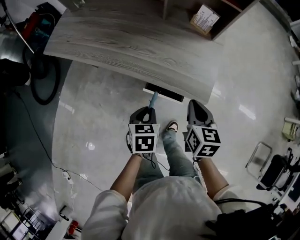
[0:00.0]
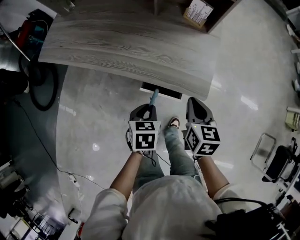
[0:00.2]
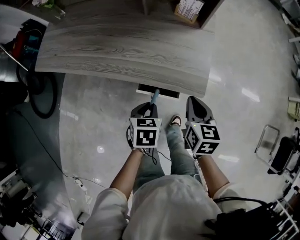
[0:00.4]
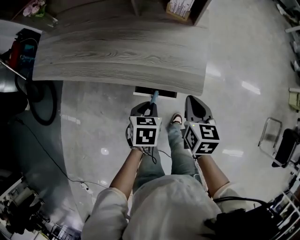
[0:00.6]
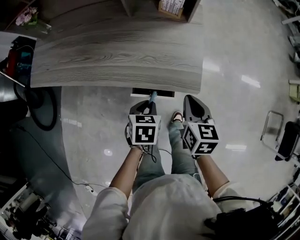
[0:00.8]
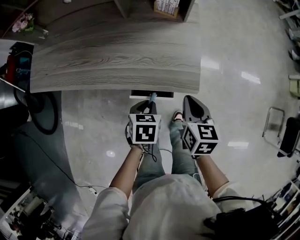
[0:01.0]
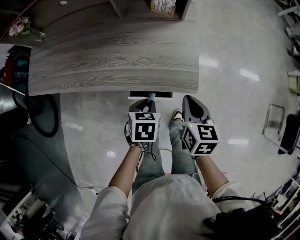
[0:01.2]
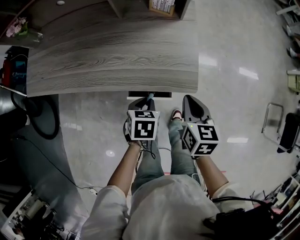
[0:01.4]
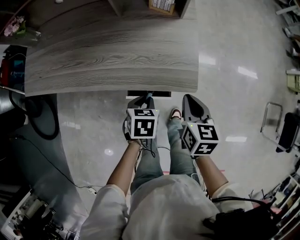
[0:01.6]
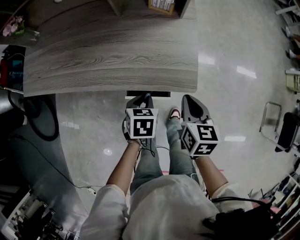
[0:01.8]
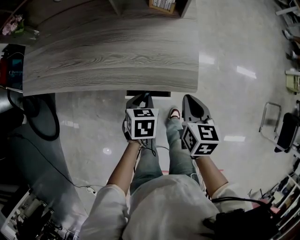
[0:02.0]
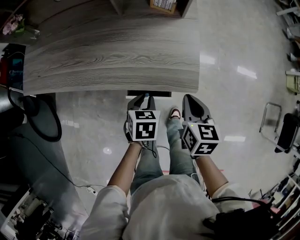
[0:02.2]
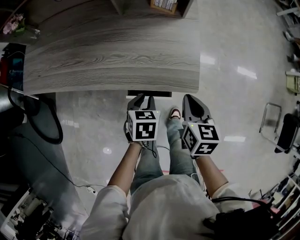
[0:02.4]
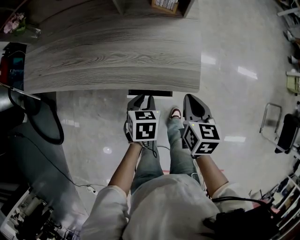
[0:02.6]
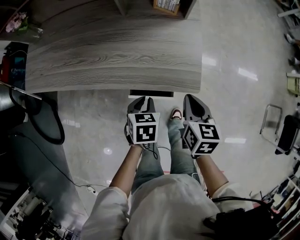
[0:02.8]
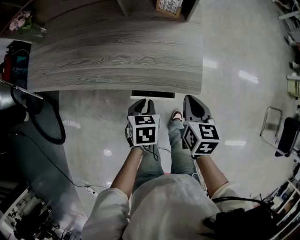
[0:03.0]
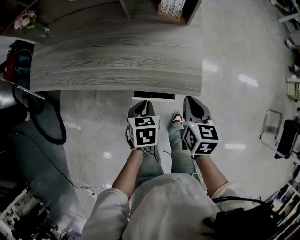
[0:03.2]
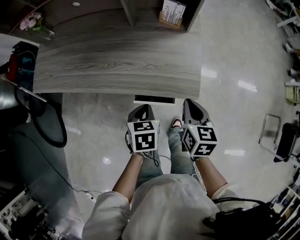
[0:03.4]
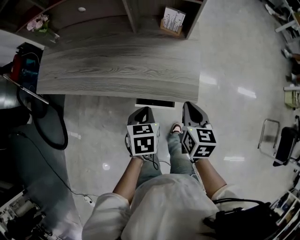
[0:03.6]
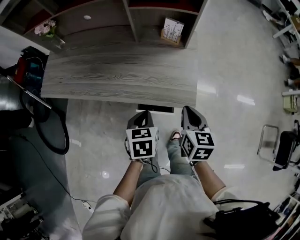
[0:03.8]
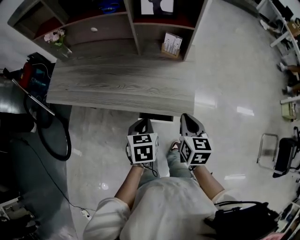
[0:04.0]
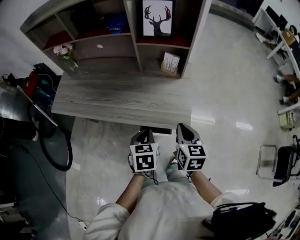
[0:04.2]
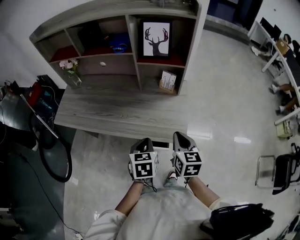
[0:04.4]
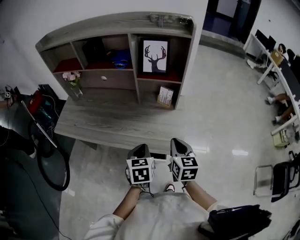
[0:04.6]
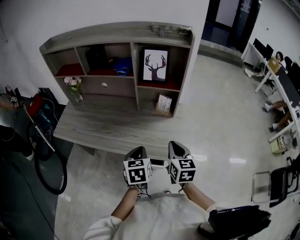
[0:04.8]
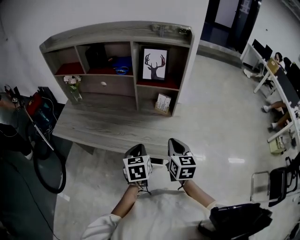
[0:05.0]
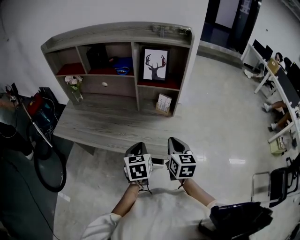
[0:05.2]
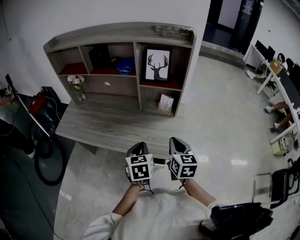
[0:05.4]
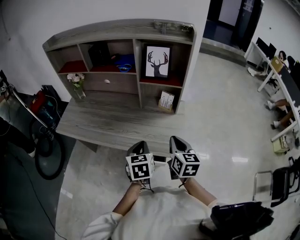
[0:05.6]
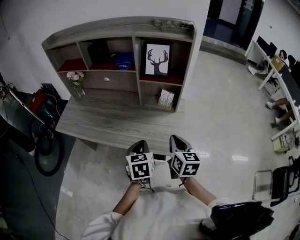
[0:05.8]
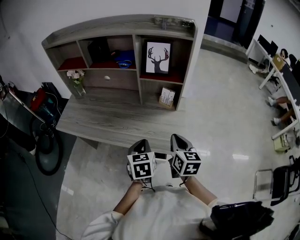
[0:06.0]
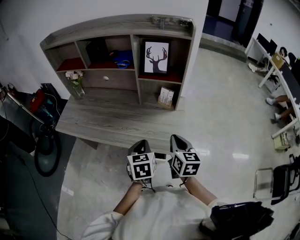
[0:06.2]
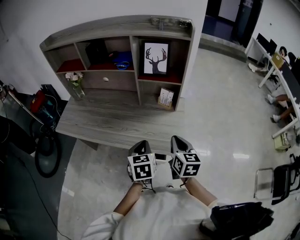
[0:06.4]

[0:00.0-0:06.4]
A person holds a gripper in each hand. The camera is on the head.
0.0 to 1.6 s: The left gripper travels forward by some 5 cm, and swivels roughly 20 degrees; the right gripper shifts by some 5 cm.
1.6 to 3.2 s: The grippers stay close to where they were, moving slightly.
3.2 to 4.8 s: Both grippers move upward, about 20 cm. The left gripper swivels approximately 30 degrees; the right gripper rotates approximately 20 degrees.
4.8 to 6.4 s: The grippers stay close to where they were, moving slightly.

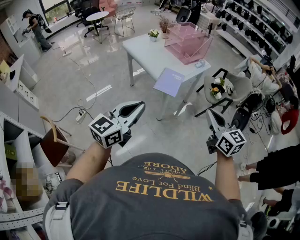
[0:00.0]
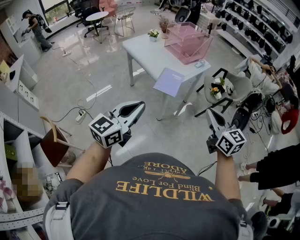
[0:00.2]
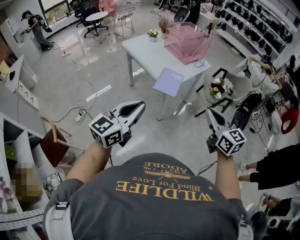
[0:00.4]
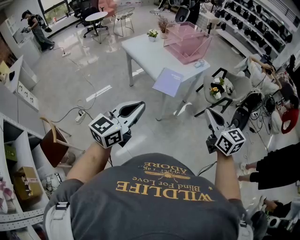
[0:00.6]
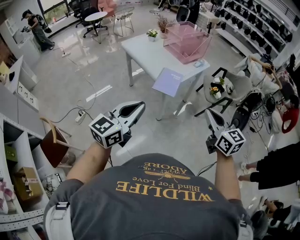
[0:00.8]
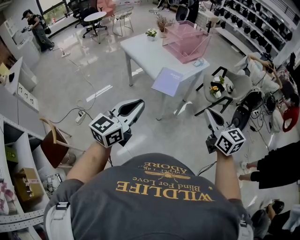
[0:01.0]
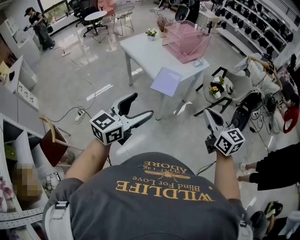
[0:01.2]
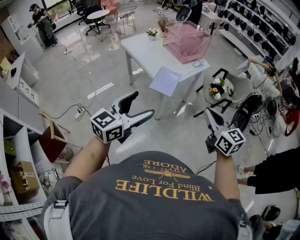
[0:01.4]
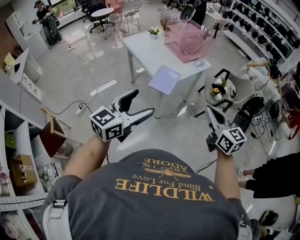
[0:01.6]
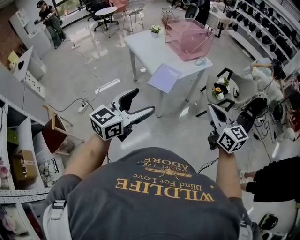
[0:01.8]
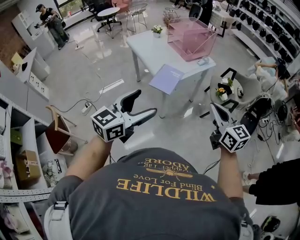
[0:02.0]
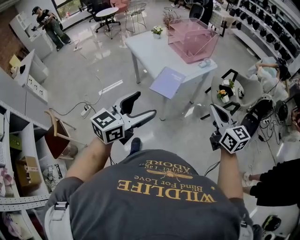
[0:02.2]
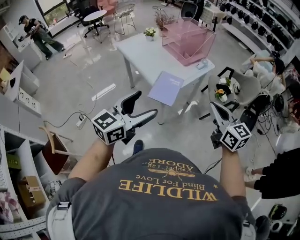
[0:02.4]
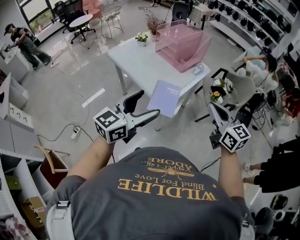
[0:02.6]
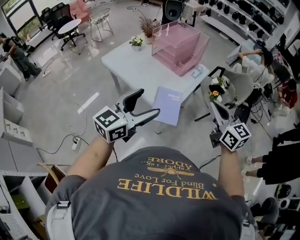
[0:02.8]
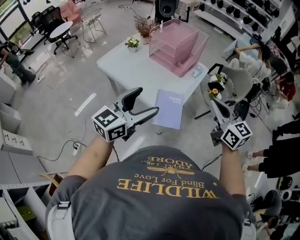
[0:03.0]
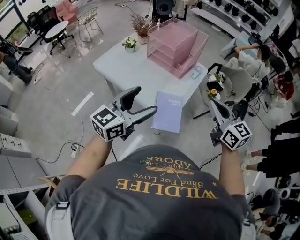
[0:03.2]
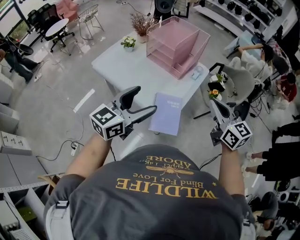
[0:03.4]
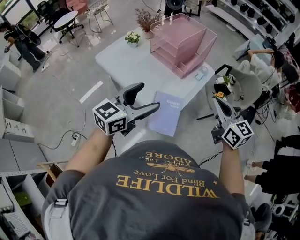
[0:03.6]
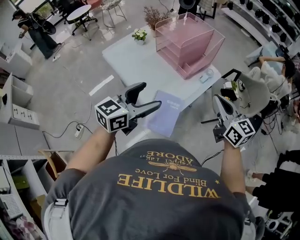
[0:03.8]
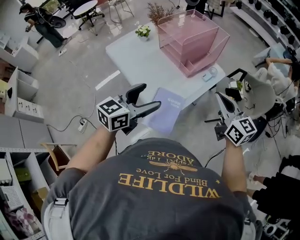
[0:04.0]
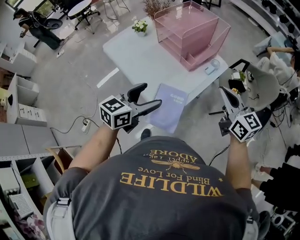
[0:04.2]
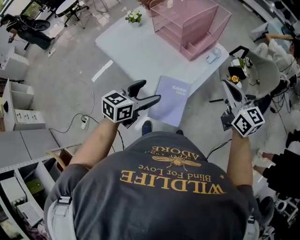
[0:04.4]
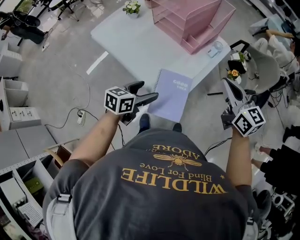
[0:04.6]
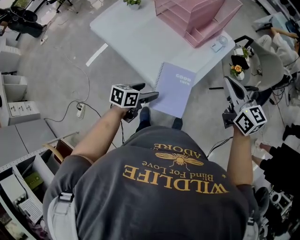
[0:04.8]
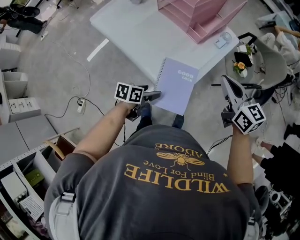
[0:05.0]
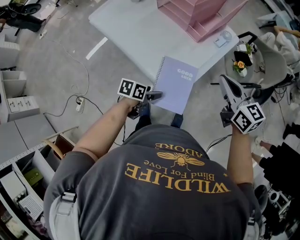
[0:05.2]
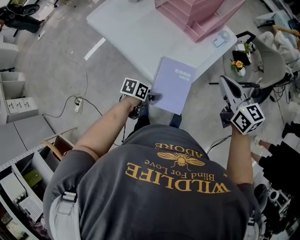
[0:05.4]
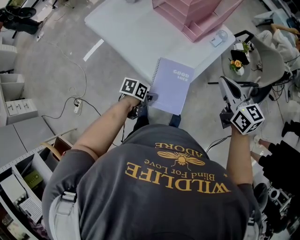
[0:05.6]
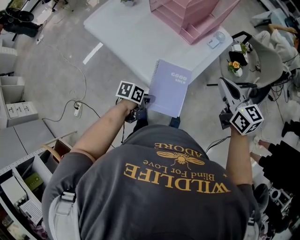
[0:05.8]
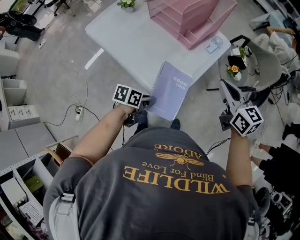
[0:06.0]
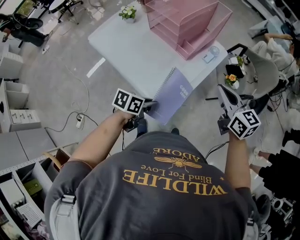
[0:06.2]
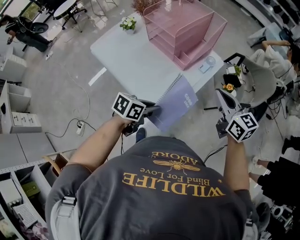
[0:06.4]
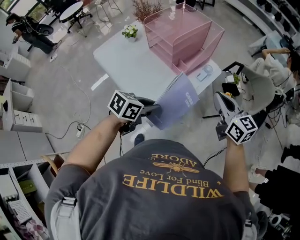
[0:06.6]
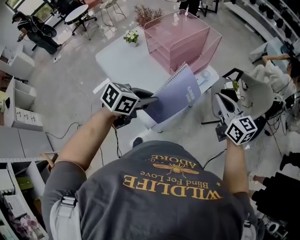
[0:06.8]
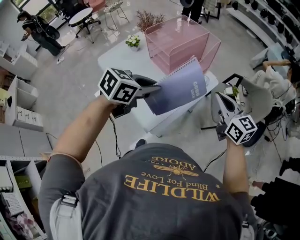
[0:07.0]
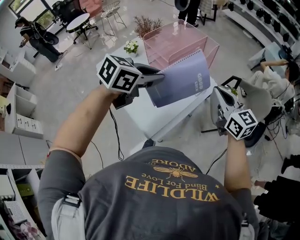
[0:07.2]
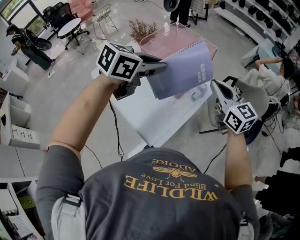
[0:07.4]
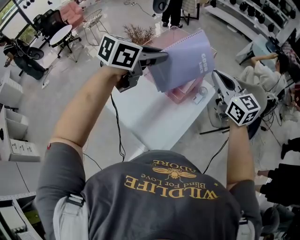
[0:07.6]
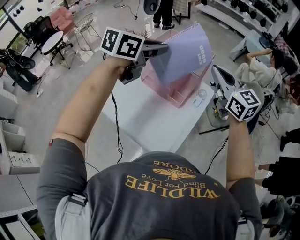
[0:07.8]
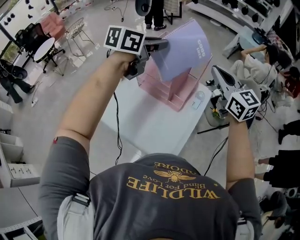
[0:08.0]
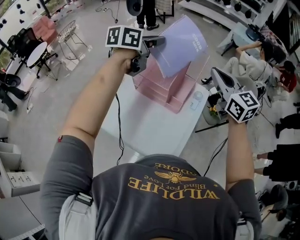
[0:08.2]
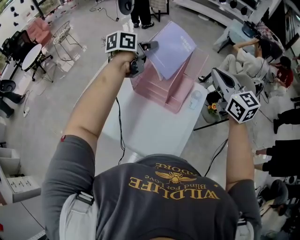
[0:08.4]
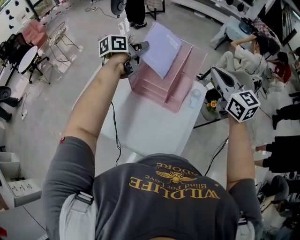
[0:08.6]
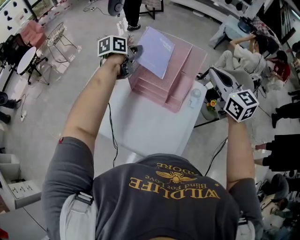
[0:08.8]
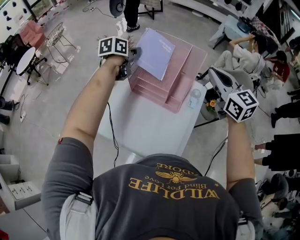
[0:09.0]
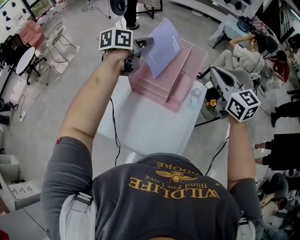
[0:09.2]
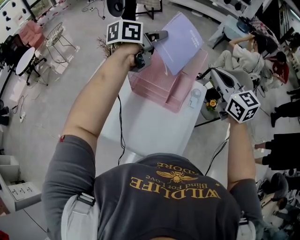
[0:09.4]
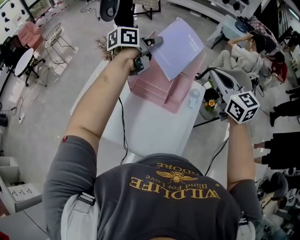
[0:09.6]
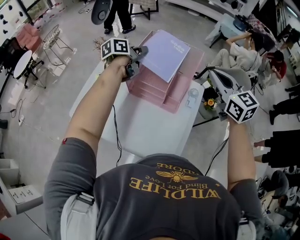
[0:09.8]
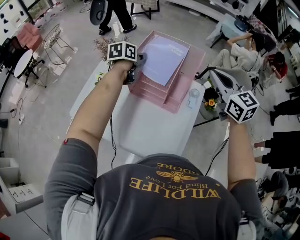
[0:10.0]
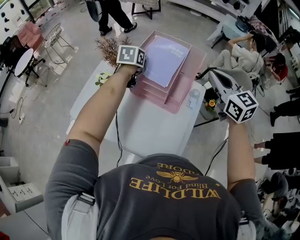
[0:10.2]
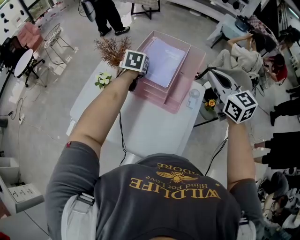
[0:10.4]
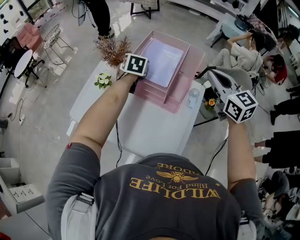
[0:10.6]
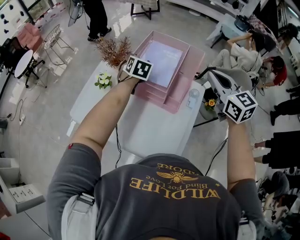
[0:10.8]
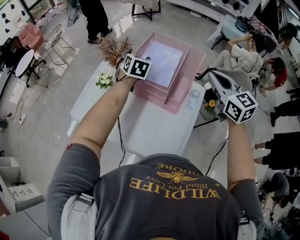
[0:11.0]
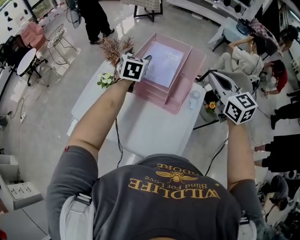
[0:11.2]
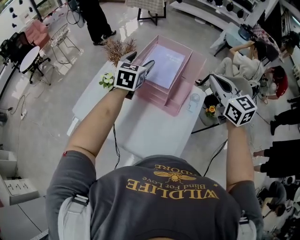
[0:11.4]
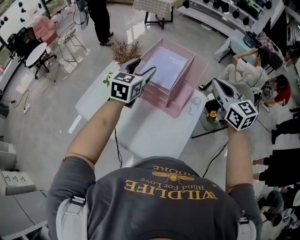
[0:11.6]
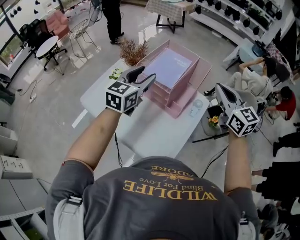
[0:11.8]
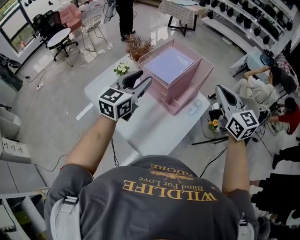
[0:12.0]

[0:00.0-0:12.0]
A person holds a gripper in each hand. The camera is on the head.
0.0 to 1.6 s: Both grippers travel together to the right, about 5 cm. The left gripper opens.
1.6 to 3.0 s: The right gripper travels forward and to the left by roughly 30 cm; the left gripper moves forward, roughly 35 cm.
3.0 to 4.4 s: The left gripper goes some 20 cm downward and forward, and rotates some 30 degrees, while the right gripper is displaced forward and downward by about 20 cm.
4.4 to 6.0 s: The left gripper moves downward, roughly 20 cm, rotates about 40 degrees, and closes its fingers; the right gripper moves downward, roughly 5 cm.
6.0 to 7.6 s: The left gripper is displaced upward and forward by approximately 50 cm, and twists some 50 degrees clockwise, seen from behind. Meanwhile the right gripper heads upward and forward, covering about 25 cm, and changes its angle by roughly 20 degrees.
7.6 to 9.0 s: The right gripper goes roughly 5 cm forward; the left gripper travels forward, to the left and downward by roughly 30 cm, and turns by some 20 degrees.
9.0 to 10.4 s: The left gripper reaches some 15 cm upward, then returns, and turns by roughly 30 degrees.
10.4 to 12.0 s: The left gripper moves backward and upward, approximately 30 cm, angles its fingers upward, by some 40 degrees, and opens, then closes again. The right gripper is displaced backward by about 5 cm.

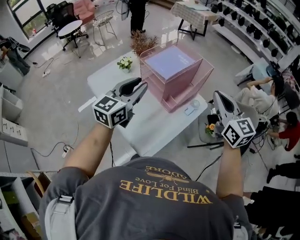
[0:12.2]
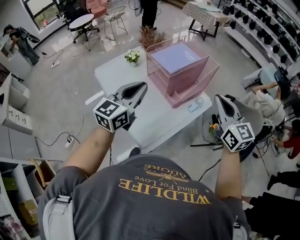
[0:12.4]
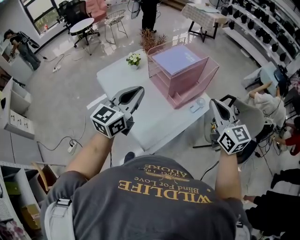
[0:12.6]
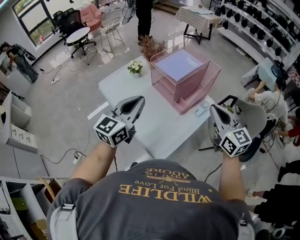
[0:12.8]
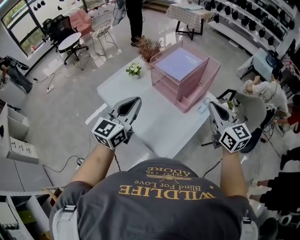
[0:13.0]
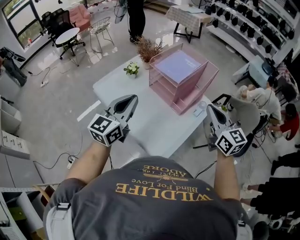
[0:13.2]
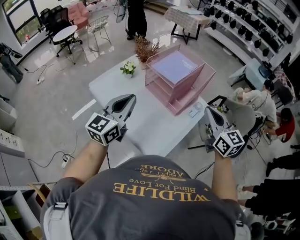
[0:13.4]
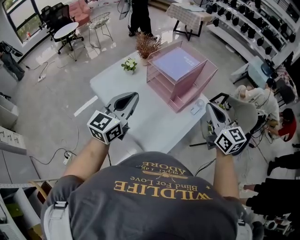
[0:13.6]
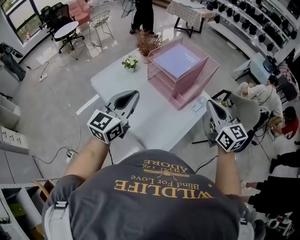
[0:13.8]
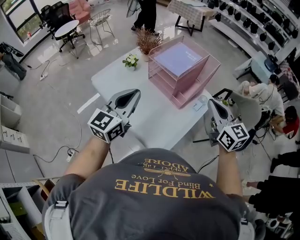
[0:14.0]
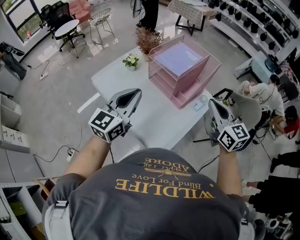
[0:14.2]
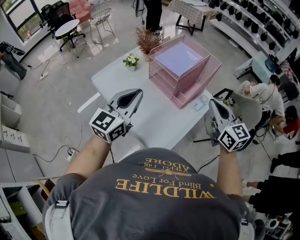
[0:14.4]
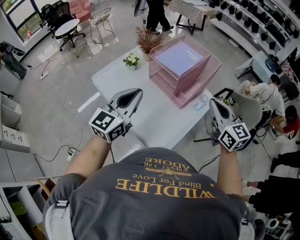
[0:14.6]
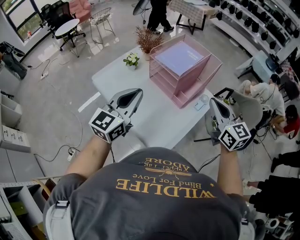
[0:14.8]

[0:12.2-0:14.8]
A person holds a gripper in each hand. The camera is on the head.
12.2 to 13.4 s: The left gripper travels to the left by roughly 10 cm, while the right gripper moves to the left and downward, about 10 cm.
13.4 to 14.8 s: The grippers make only small movements.

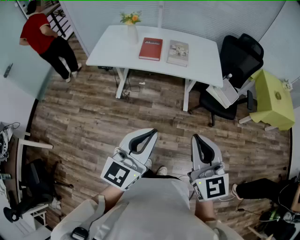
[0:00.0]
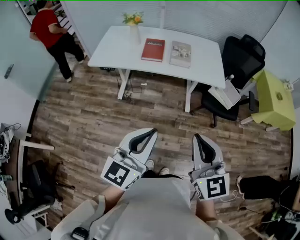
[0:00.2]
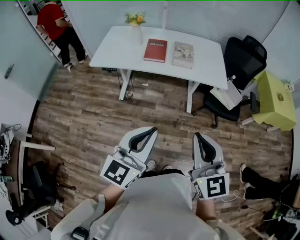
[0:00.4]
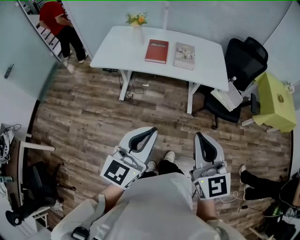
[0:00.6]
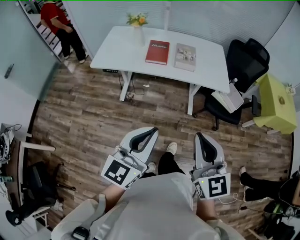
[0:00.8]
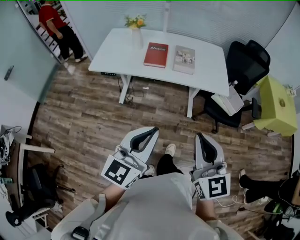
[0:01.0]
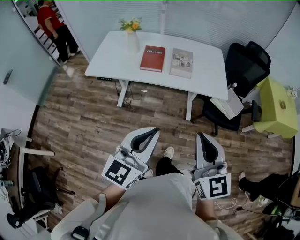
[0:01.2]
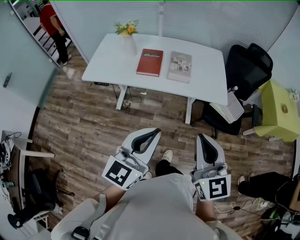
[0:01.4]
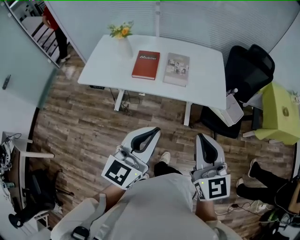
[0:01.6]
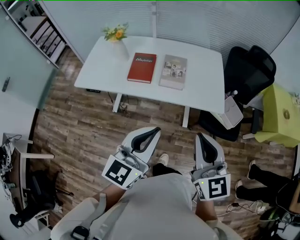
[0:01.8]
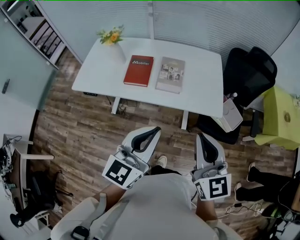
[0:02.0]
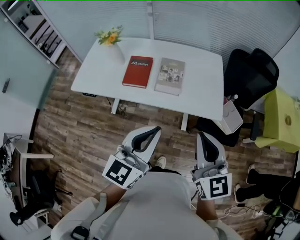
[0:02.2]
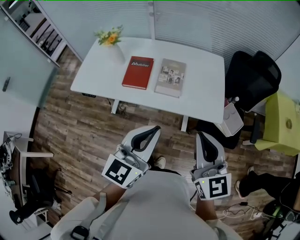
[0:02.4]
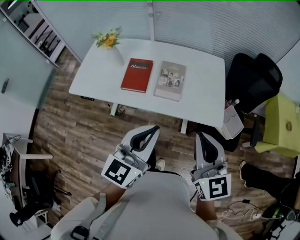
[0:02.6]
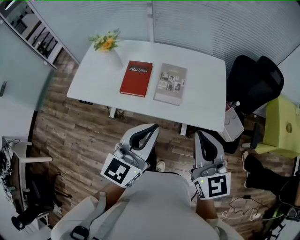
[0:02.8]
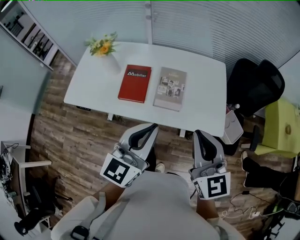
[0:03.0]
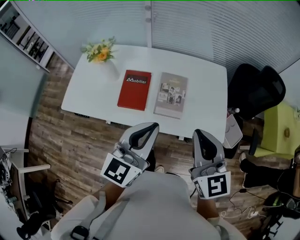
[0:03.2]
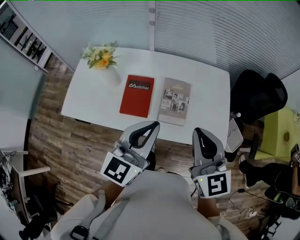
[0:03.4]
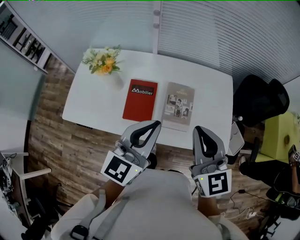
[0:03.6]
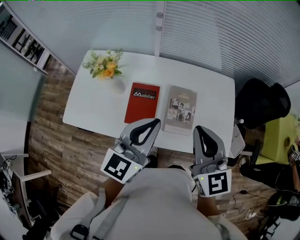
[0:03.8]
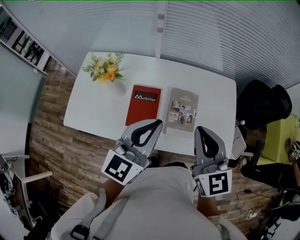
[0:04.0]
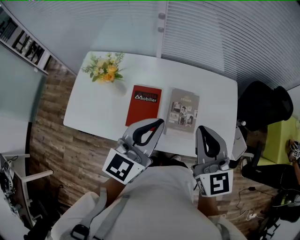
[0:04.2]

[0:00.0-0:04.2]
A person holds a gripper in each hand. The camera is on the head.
0.0 to 1.4 s: The two grippers go roughly 15 cm forward.
1.4 to 2.8 s: The grippers both shift forward by roughly 25 cm.
2.8 to 4.2 s: The two grippers go roughly 25 cm forward and to the left.
